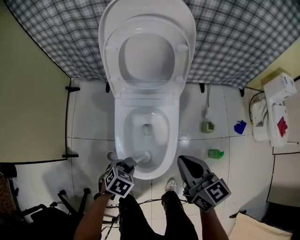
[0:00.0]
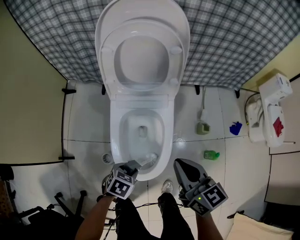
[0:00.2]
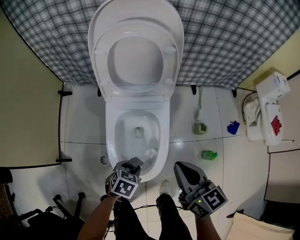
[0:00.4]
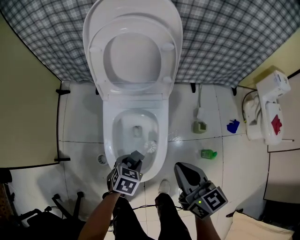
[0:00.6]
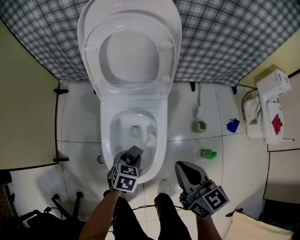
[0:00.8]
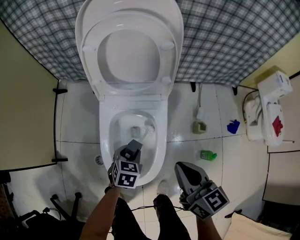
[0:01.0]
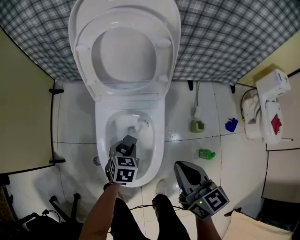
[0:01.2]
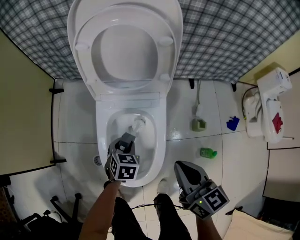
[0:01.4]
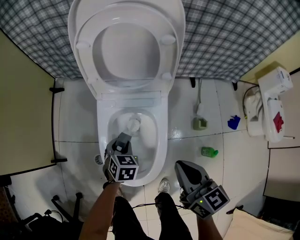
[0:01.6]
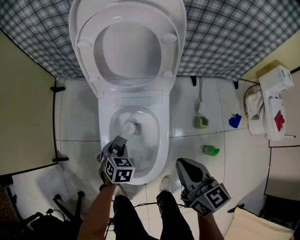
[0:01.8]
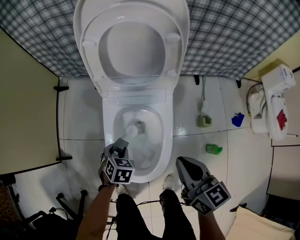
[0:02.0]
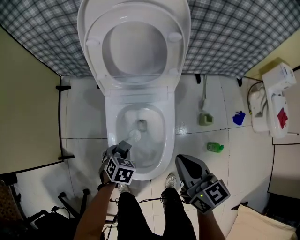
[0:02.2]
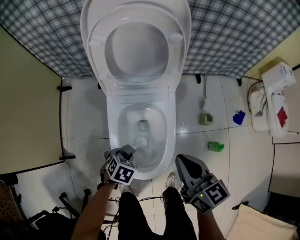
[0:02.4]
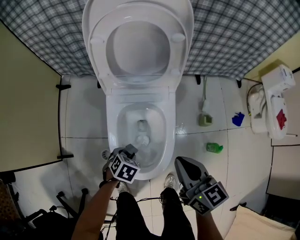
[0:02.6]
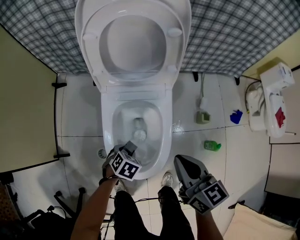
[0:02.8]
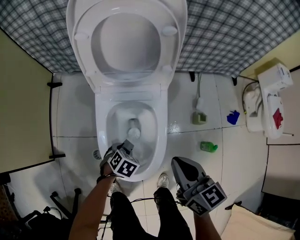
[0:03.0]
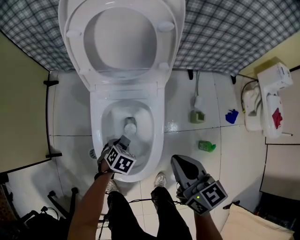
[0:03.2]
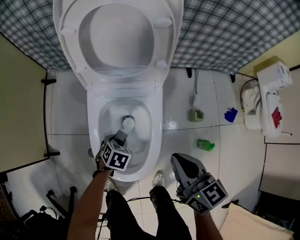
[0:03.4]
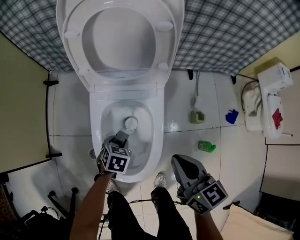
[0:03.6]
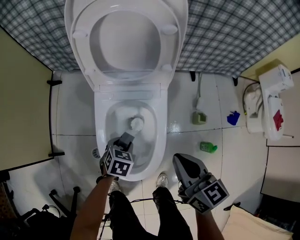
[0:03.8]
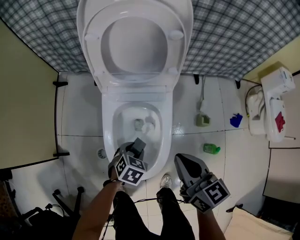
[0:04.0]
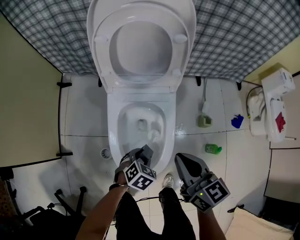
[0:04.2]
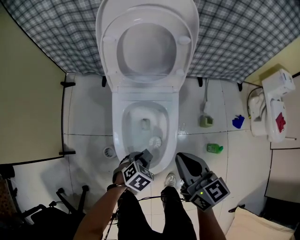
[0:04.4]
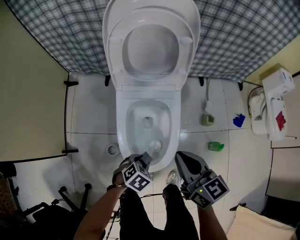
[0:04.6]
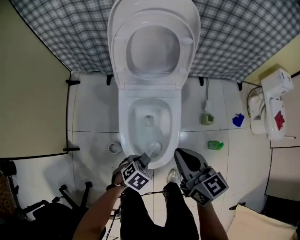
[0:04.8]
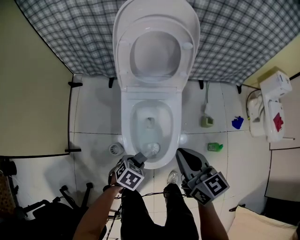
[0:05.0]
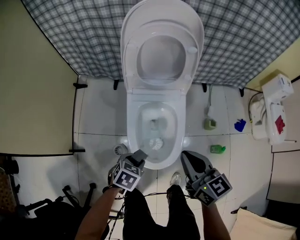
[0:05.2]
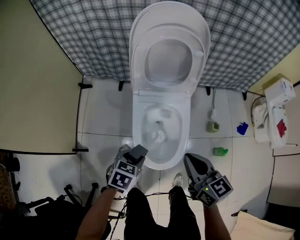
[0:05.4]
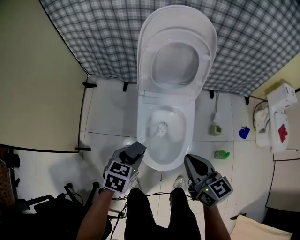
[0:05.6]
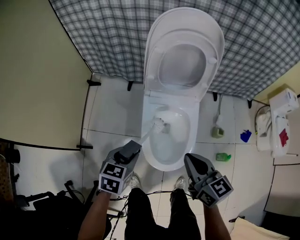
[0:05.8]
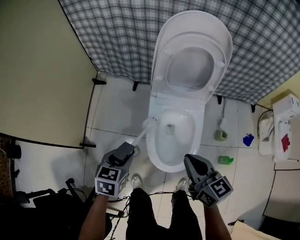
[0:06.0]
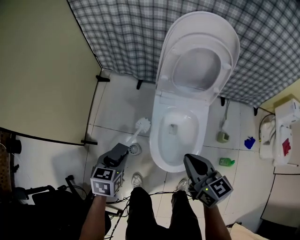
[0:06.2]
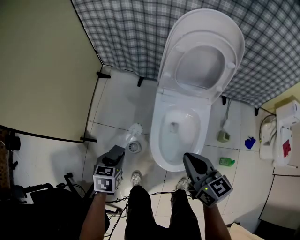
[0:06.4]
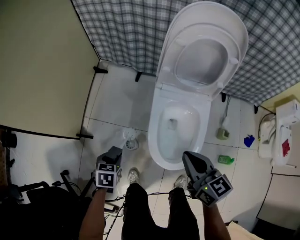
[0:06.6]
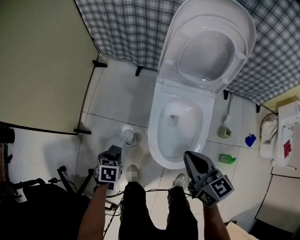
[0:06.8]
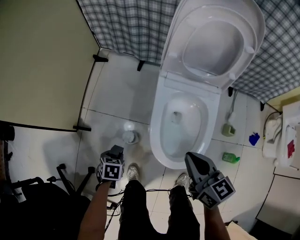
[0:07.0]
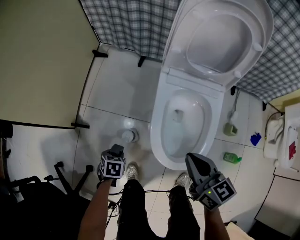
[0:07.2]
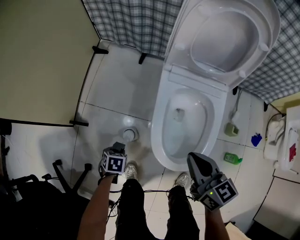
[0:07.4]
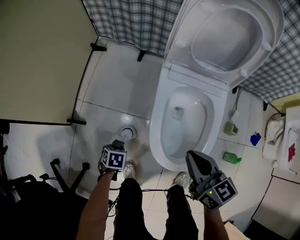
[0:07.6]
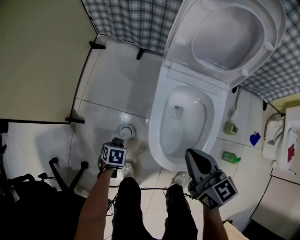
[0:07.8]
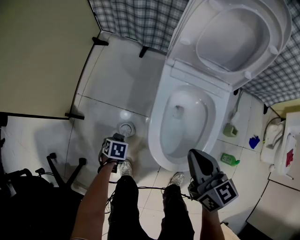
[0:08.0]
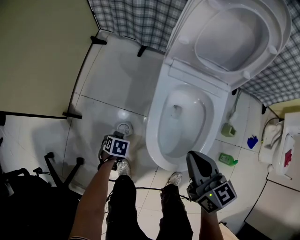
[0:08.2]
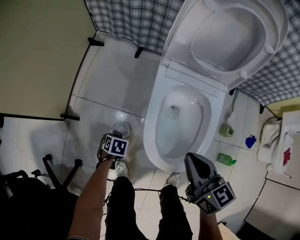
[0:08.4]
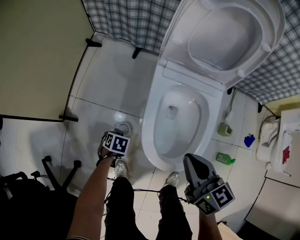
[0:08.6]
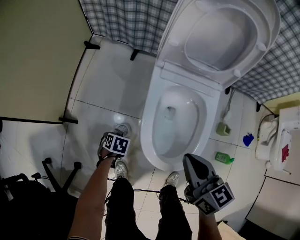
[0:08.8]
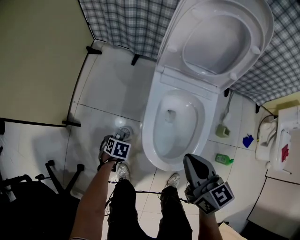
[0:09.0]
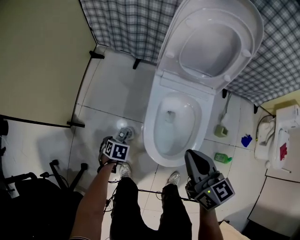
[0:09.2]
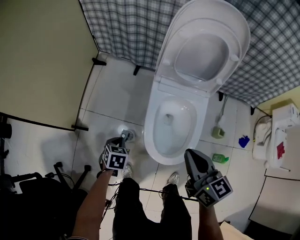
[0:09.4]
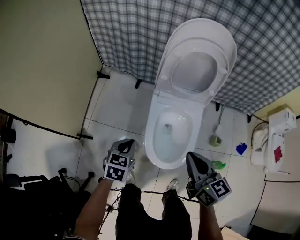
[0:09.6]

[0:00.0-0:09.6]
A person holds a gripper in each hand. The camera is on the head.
0.0 to 1.6 s: The right gripper shifts by some 5 cm, while the left gripper goes roughly 15 cm forward, and rotates roughly 30 degrees.
1.6 to 3.2 s: The left gripper moves downward, about 10 cm, and rotates some 30 degrees.
3.2 to 4.8 s: The right gripper moves upward and to the left, about 10 cm. Meanwhile the left gripper goes some 20 cm backward and upward.
4.8 to 6.4 s: The left gripper changes place by approximately 25 cm, and swivels roughly 50 degrees. Meanwhile the right gripper changes place by some 10 cm.
6.4 to 8.0 s: The left gripper goes some 30 cm downward, and changes its angle by roughly 30 degrees; the right gripper is displaced downward by some 10 cm.
8.0 to 9.6 s: The left gripper travels upward by approximately 35 cm, angles its fingers upward, by about 40 degrees, and closes up, while the right gripper is displaced upward by some 15 cm.

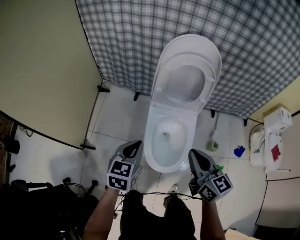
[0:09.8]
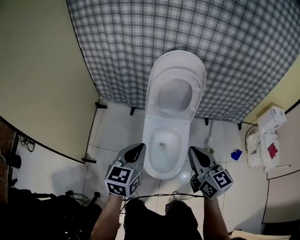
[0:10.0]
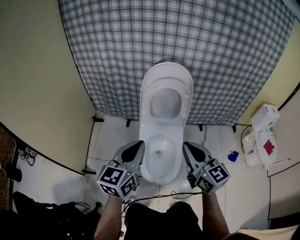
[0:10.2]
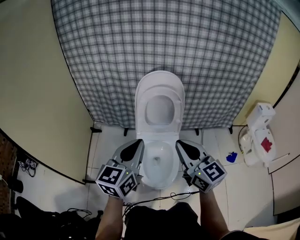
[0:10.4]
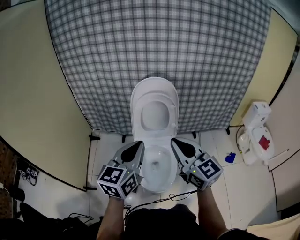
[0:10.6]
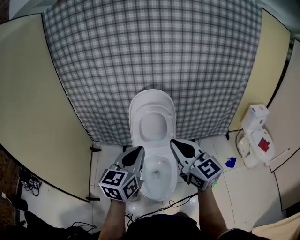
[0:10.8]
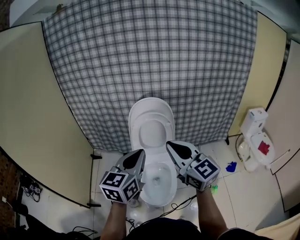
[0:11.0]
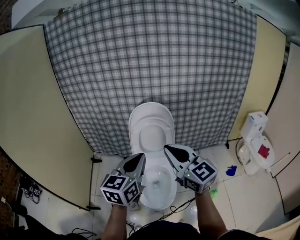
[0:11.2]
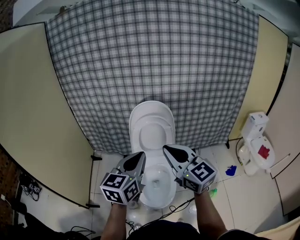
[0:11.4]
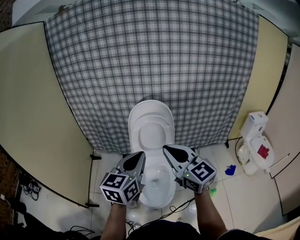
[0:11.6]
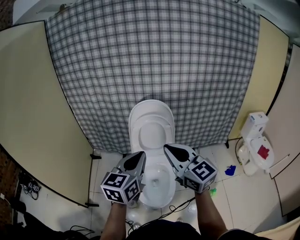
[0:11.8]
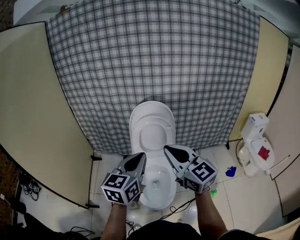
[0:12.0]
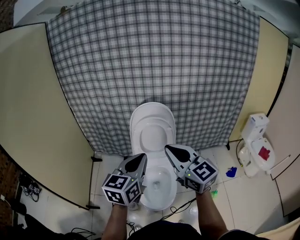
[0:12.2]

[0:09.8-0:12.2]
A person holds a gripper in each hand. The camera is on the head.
9.8 to 11.0 s: The left gripper goes some 35 cm upward and to the right, and changes its angle by roughly 30 degrees; the right gripper travels upward by approximately 25 cm, and rotates approximately 30 degrees.
11.0 to 12.2 s: The grippers make only small movements.

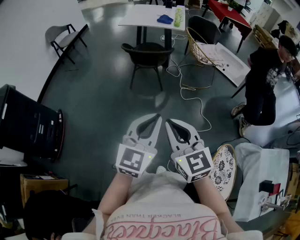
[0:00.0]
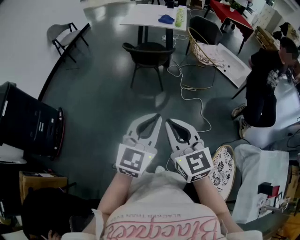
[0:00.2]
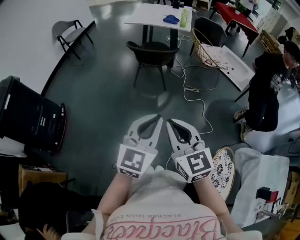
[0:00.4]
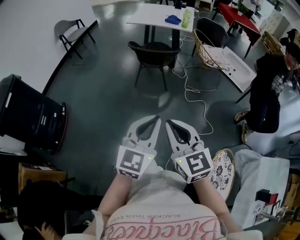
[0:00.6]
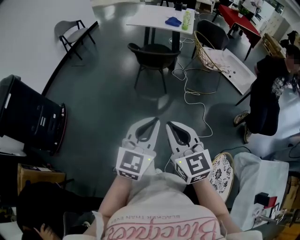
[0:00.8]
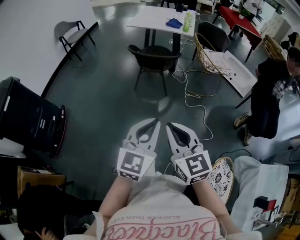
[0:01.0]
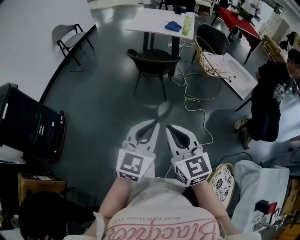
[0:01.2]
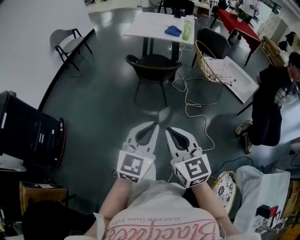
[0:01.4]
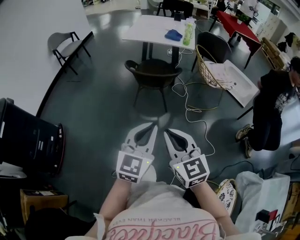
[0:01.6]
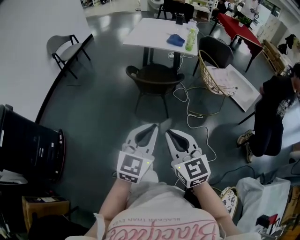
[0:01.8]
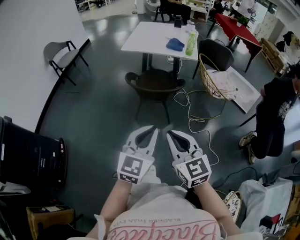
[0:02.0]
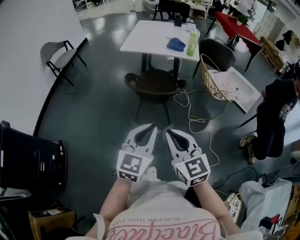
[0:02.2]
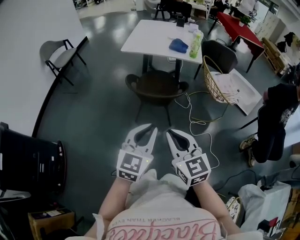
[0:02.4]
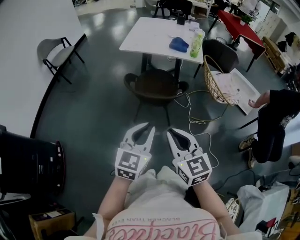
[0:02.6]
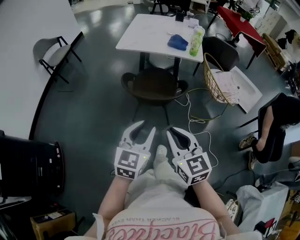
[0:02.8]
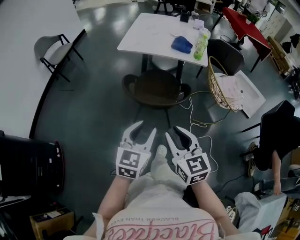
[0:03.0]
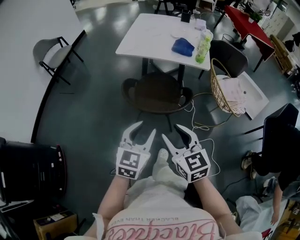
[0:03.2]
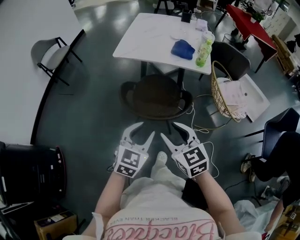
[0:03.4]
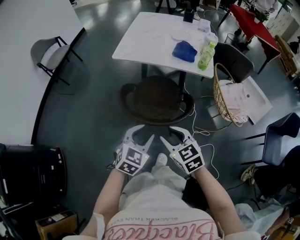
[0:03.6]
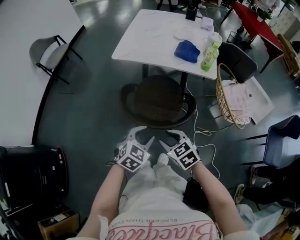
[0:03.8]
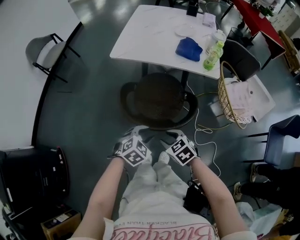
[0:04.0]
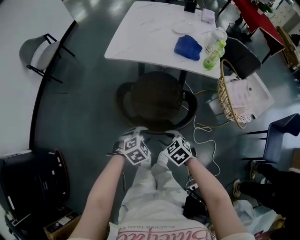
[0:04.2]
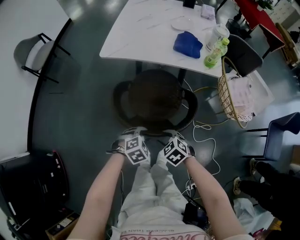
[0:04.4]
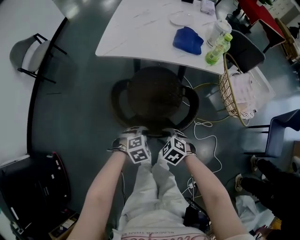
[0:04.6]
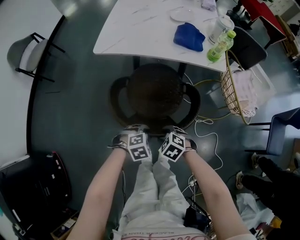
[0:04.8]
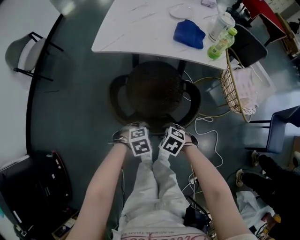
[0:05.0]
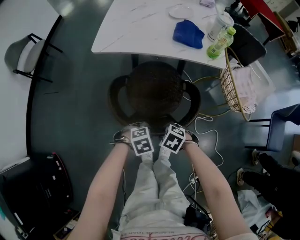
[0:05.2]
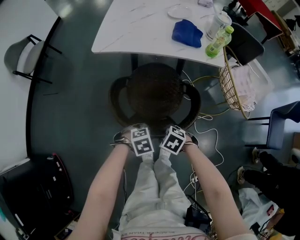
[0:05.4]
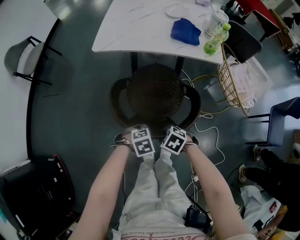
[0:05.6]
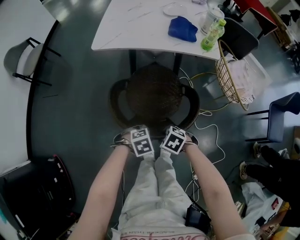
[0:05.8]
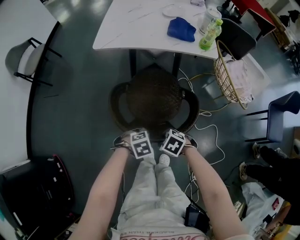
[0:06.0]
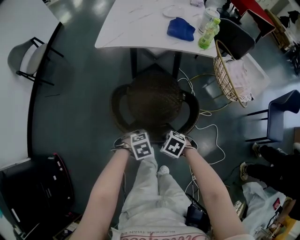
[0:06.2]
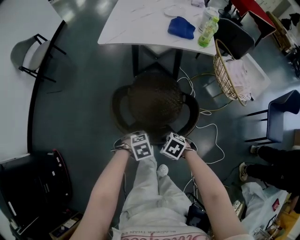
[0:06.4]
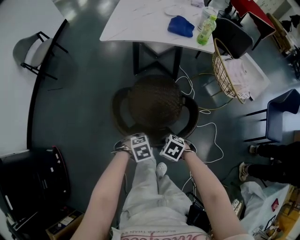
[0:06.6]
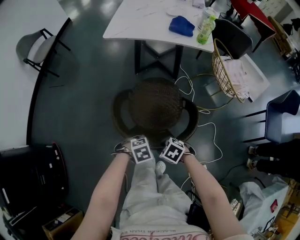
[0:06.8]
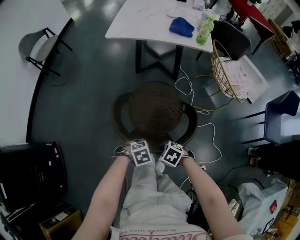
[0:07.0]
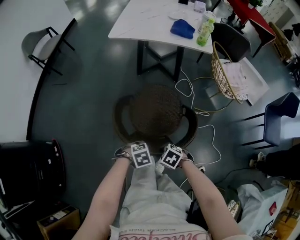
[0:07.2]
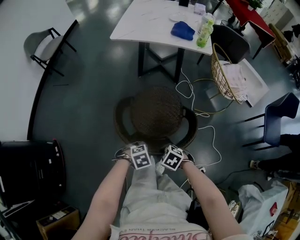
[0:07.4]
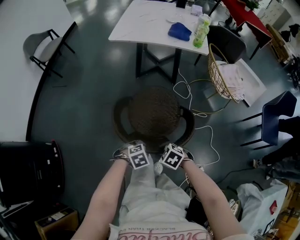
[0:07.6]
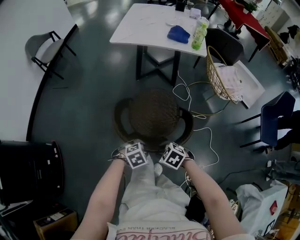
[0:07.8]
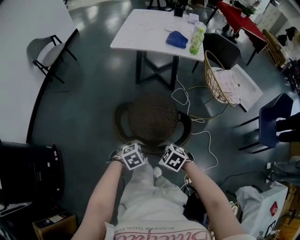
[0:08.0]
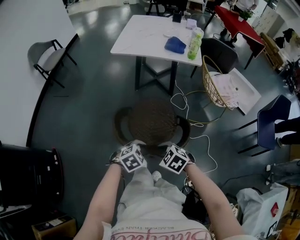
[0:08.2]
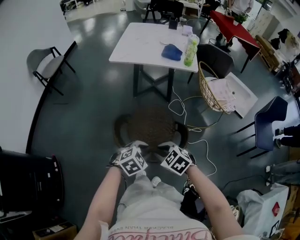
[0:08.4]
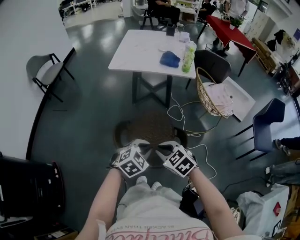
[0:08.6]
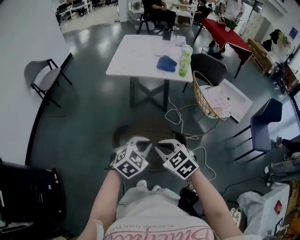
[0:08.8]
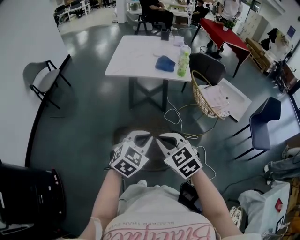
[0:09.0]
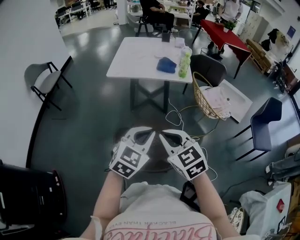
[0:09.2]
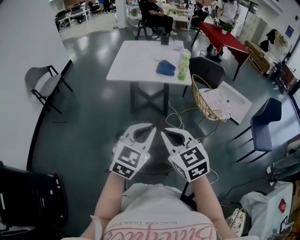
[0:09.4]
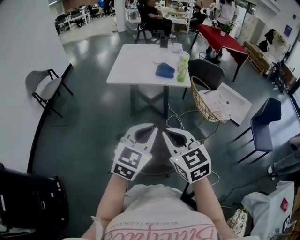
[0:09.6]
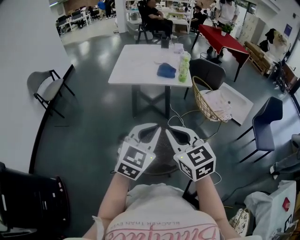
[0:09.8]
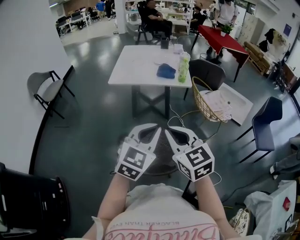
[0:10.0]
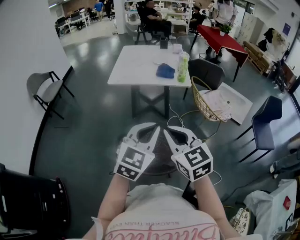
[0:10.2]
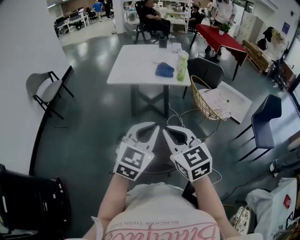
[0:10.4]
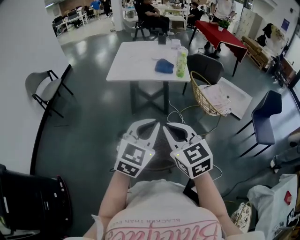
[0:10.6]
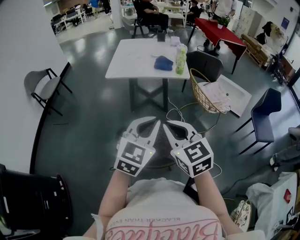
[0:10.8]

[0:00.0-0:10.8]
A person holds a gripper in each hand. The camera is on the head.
0.0 to 1.6 s: Both grippers travel together forward, about 20 cm.
1.6 to 3.0 s: The two grippers go roughly 35 cm forward. The left gripper opens.
3.0 to 4.6 s: Both grippers move downward and forward, approximately 40 cm. The right gripper tips its fingers downward by about 40 degrees, and opens; the left gripper points its fingers roughly 50 degrees further downward.
4.6 to 6.2 s: The right gripper ends up about 10 cm from where it was, while the left gripper moves about 15 cm.
6.2 to 7.8 s: The left gripper shifts by approximately 20 cm. The right gripper changes place by some 20 cm.
7.8 to 9.2 s: Both grippers travel together upward, roughly 30 cm. The left gripper tilts its fingers approximately 50 degrees upward, and closes. The right gripper points its fingers roughly 40 degrees further upward, and closes up.
9.2 to 10.8 s: The left gripper goes approximately 5 cm upward.

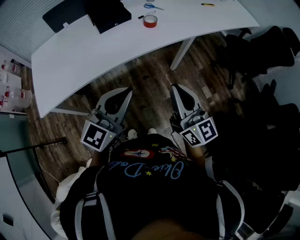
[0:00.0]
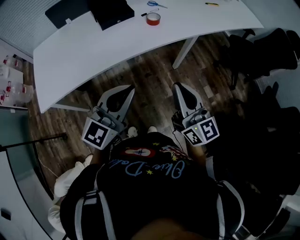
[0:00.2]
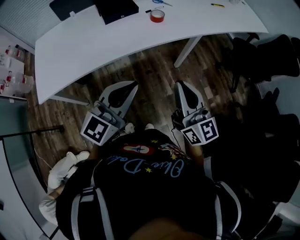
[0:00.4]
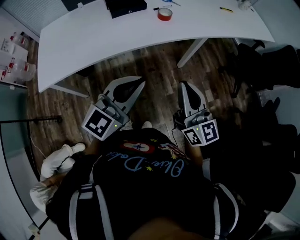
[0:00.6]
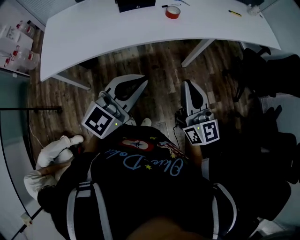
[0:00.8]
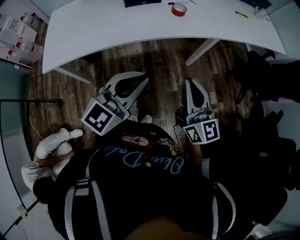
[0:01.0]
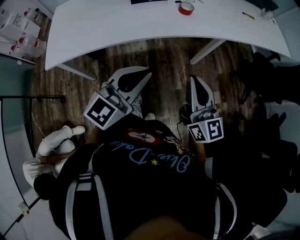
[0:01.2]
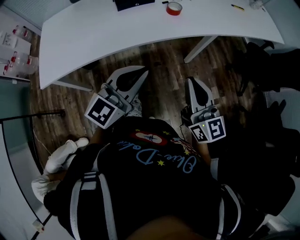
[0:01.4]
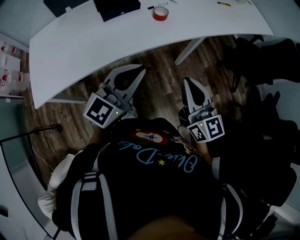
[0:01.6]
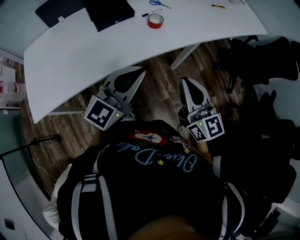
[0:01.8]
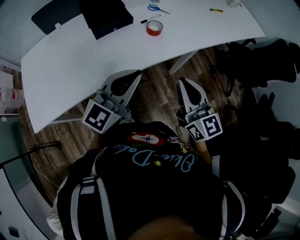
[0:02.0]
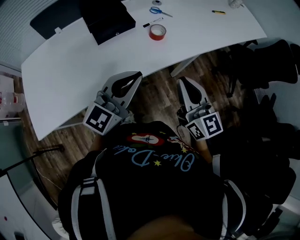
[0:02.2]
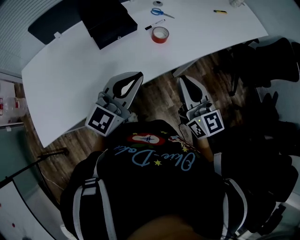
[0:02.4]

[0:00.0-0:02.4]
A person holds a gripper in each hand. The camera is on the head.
0.0 to 1.2 s: The grippers stay close to where they were, moving slightly.
1.2 to 2.4 s: The grippers both shift forward by roughly 20 cm.
